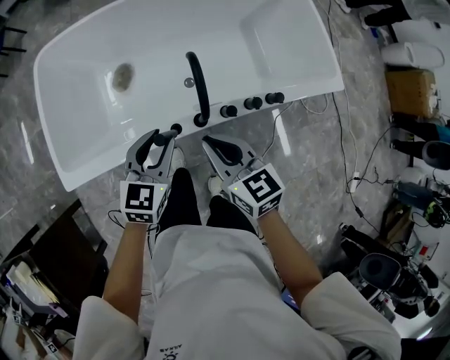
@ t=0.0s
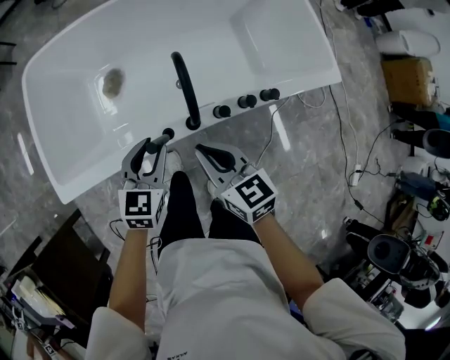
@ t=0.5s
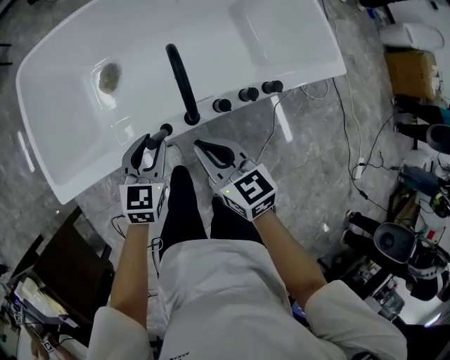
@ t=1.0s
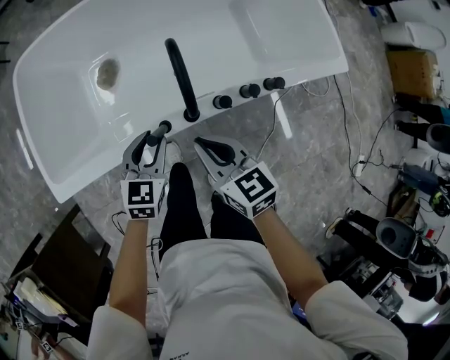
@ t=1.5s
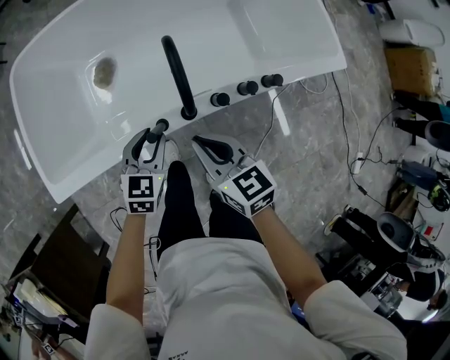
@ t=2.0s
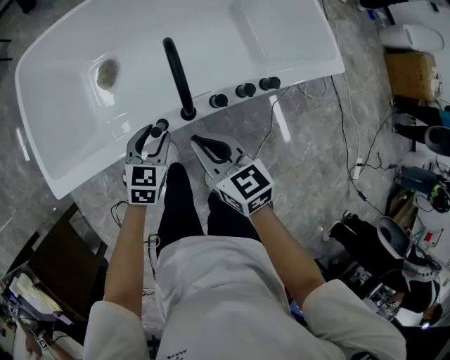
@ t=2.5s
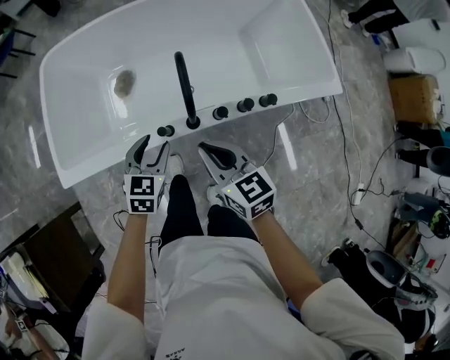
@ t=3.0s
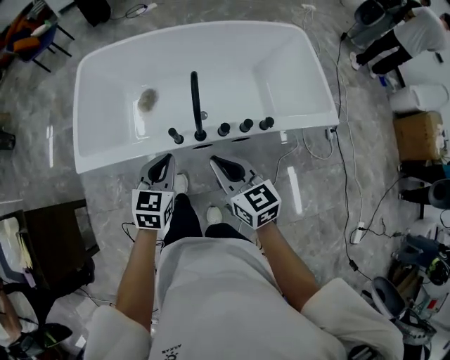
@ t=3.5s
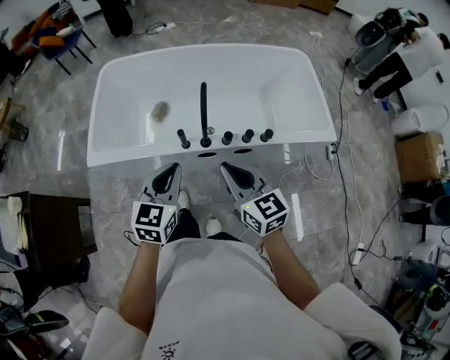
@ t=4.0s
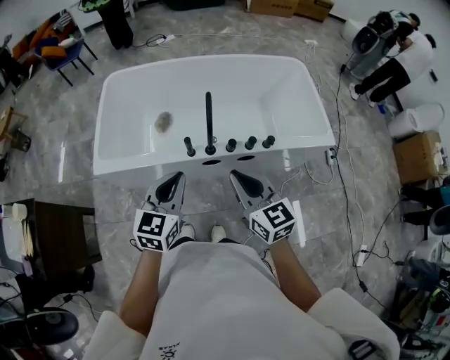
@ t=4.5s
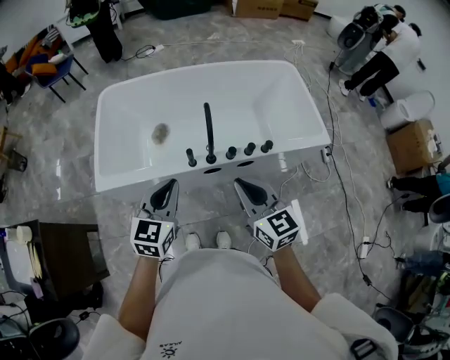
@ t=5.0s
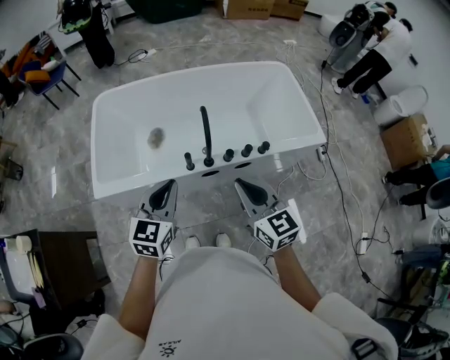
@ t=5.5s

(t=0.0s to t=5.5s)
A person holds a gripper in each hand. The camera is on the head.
t=0.0s - t=2.0s: The left gripper moves downward, about 10 cm; the right gripper shifts some 5 cm downward.
t=2.0s - t=3.5s: Both grippers travel together upward and backward, some 15 cm. The left gripper closes up.
t=3.5s - t=5.5s: The right gripper heads upward and backward, covering some 15 cm, while the left gripper heads upward, backward and to the left, covering approximately 15 cm.

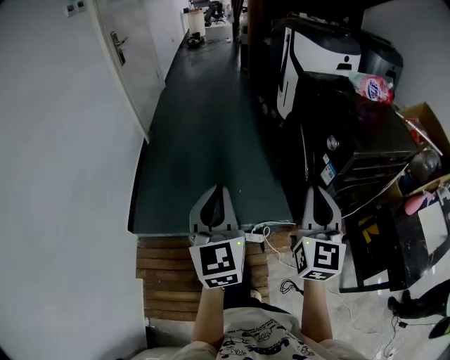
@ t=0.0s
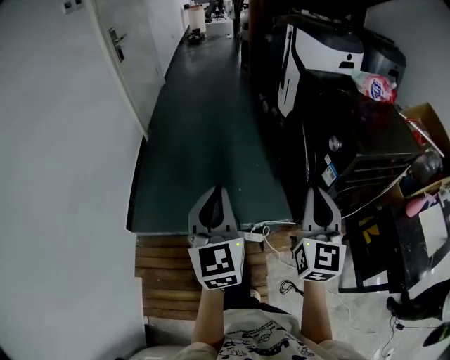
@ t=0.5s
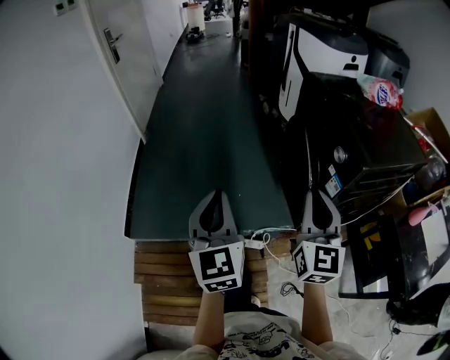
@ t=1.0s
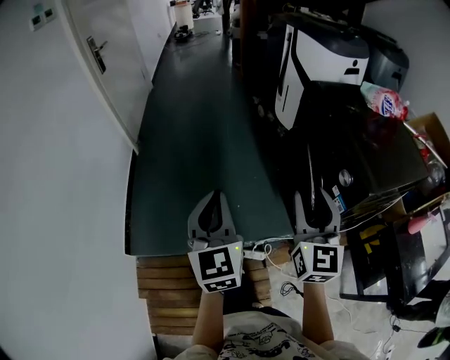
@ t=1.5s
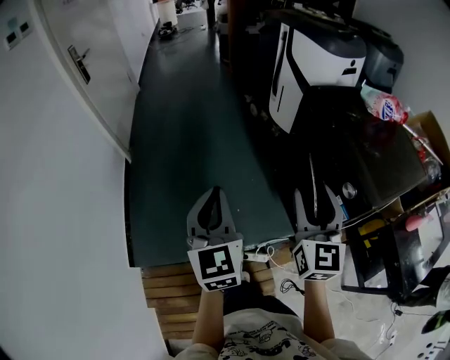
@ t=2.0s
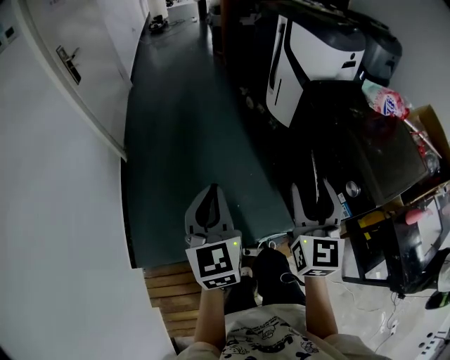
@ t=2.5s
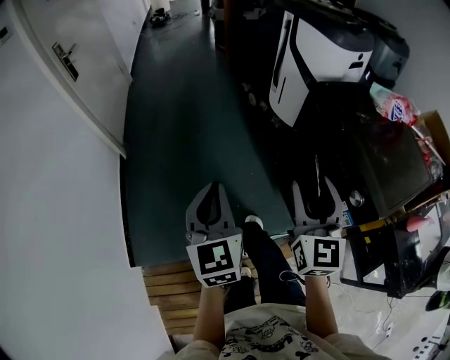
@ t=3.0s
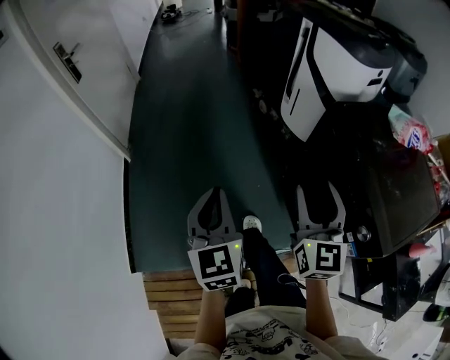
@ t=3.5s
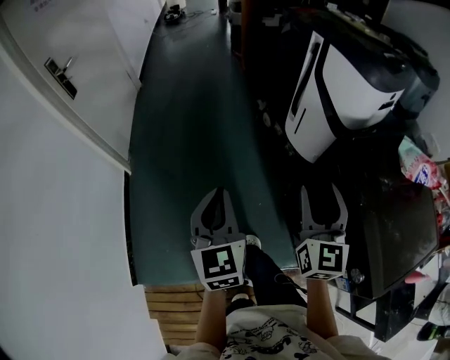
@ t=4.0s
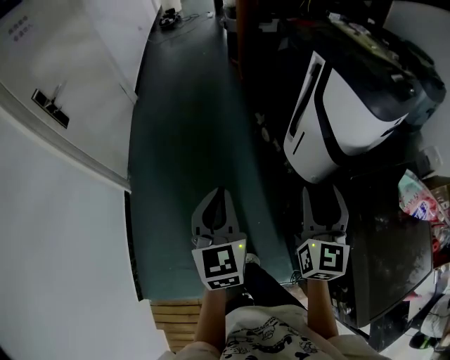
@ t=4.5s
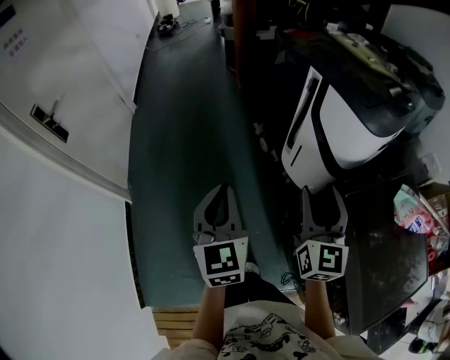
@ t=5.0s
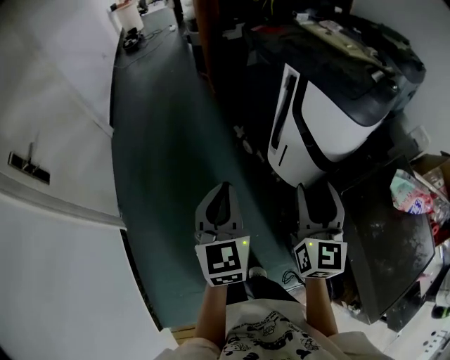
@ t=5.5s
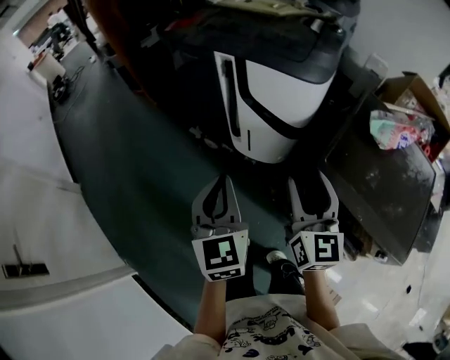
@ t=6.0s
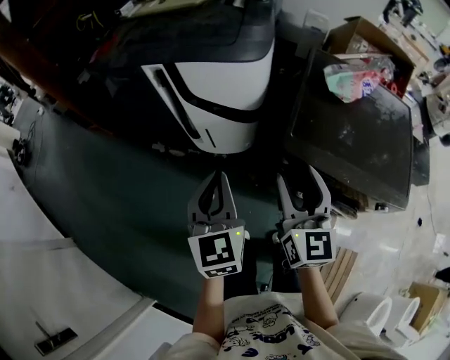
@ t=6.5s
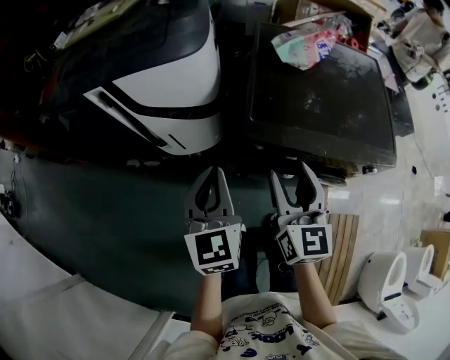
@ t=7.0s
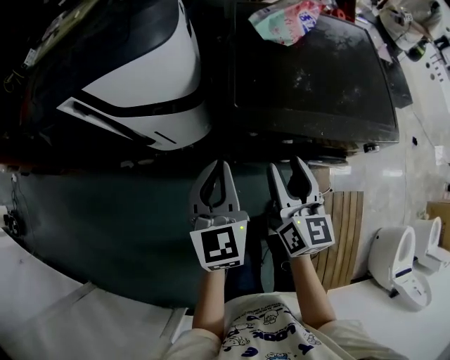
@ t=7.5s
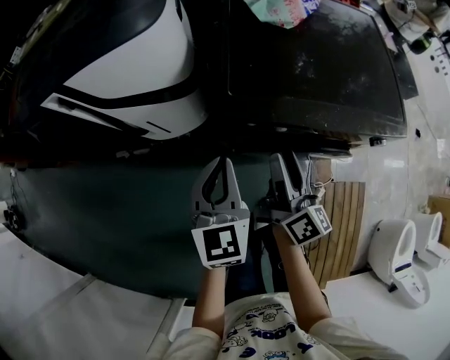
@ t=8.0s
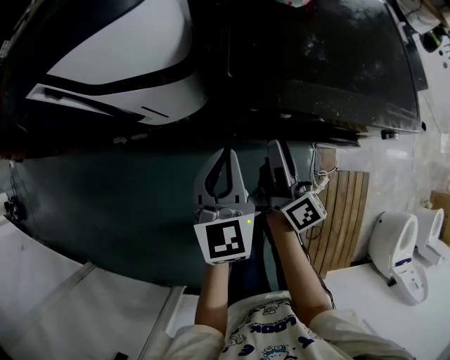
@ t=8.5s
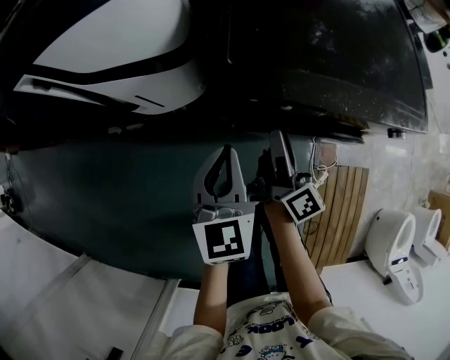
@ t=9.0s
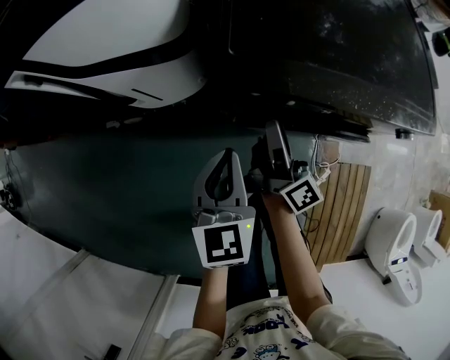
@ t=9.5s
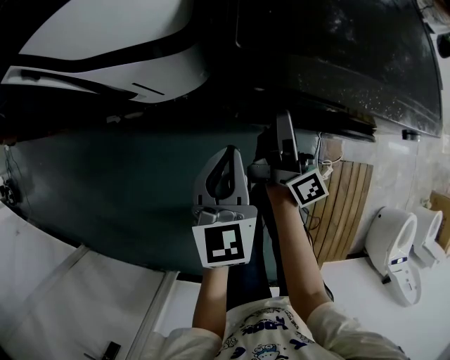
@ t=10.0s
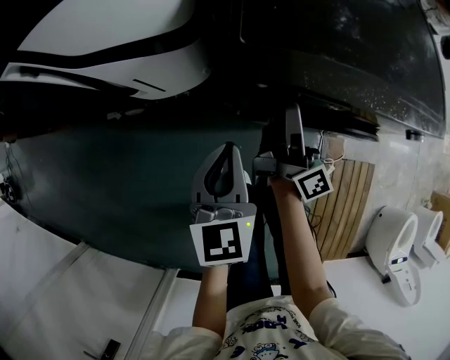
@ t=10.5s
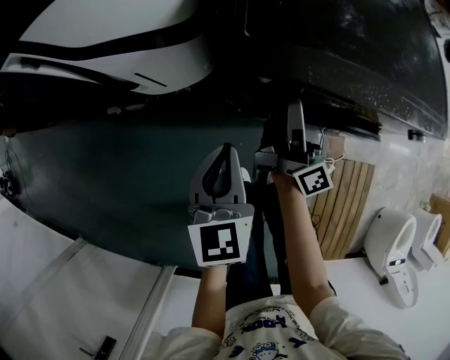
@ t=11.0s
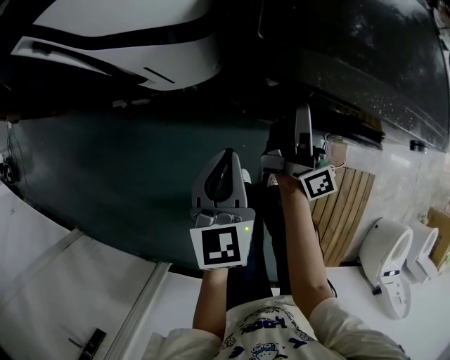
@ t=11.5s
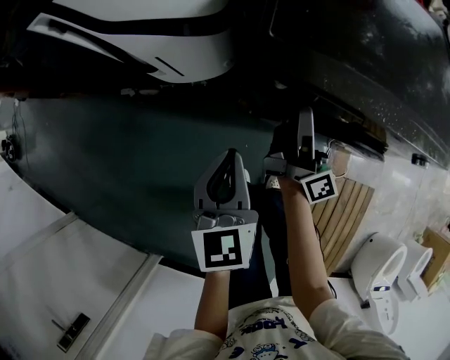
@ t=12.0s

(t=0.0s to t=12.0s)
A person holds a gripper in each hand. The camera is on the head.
t=0.0s - t=2.0s: Both grippers travel together forward, roughly 30 cm. The right gripper opens its fingers.
t=2.0s - t=4.0s: Both grippers travel together forward, roughly 35 cm.
t=4.0s - t=6.0s: The right gripper moves roughly 30 cm, and changes its angle by some 30 degrees; the left gripper ends up some 40 cm from where it was, and turns by about 40 degrees.
t=6.0s - t=8.0s: The left gripper shifts by about 25 cm, and changes its angle by about 40 degrees. Meanwhile the right gripper ends up about 25 cm from where it was, and turns by roughly 60 degrees.
t=8.0s - t=10.0s: The left gripper shifts about 10 cm downward; the right gripper heads downward and forward, covering some 15 cm, and turns by about 20 degrees.
t=10.0s - t=12.0s: The grippers stay close to where they were, moving slightly.

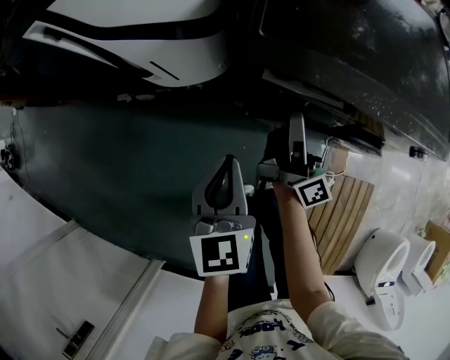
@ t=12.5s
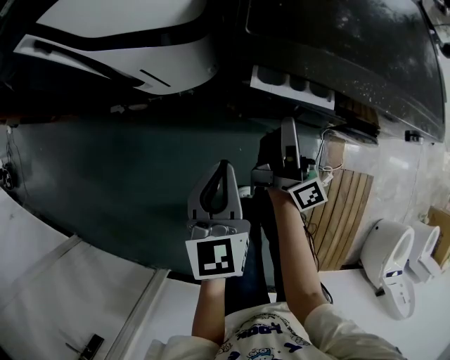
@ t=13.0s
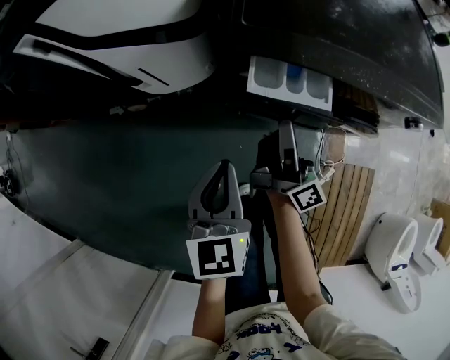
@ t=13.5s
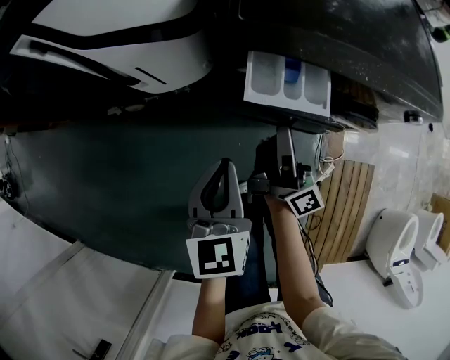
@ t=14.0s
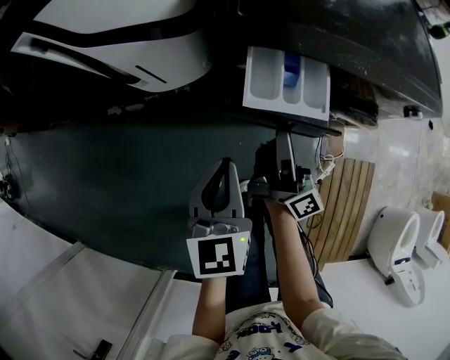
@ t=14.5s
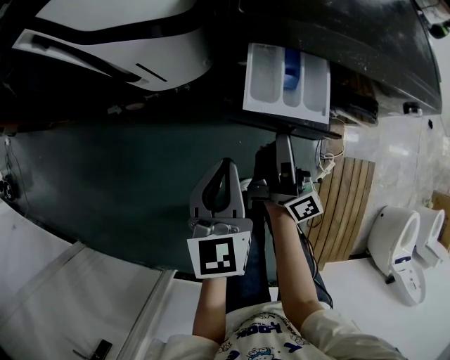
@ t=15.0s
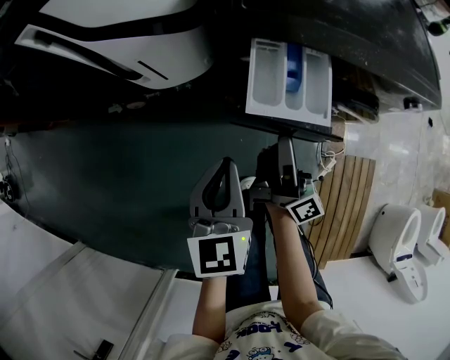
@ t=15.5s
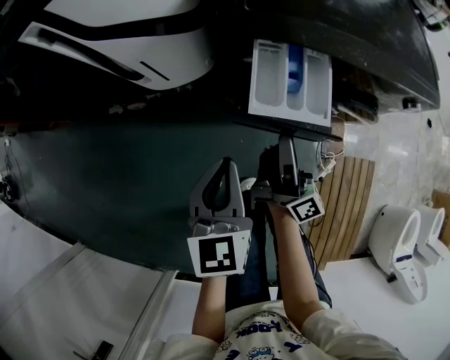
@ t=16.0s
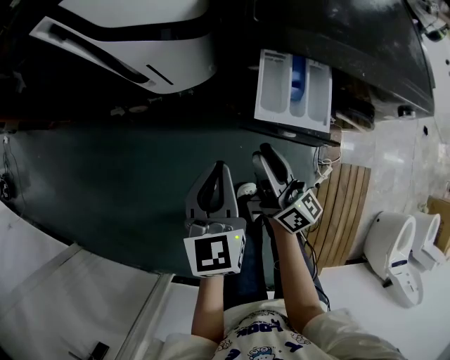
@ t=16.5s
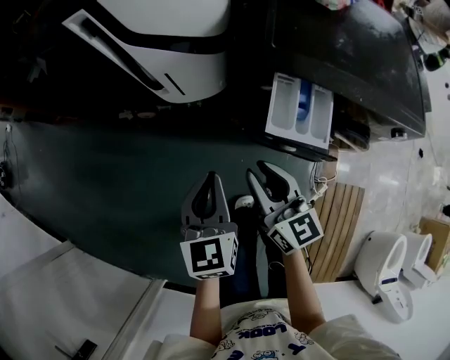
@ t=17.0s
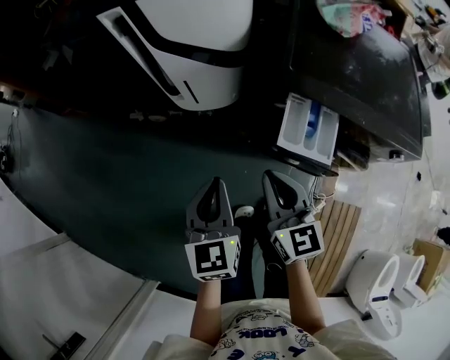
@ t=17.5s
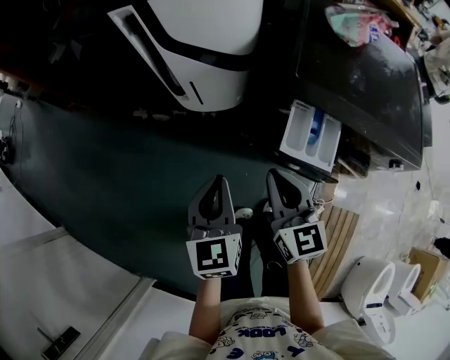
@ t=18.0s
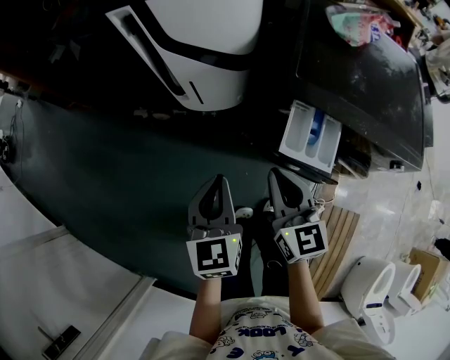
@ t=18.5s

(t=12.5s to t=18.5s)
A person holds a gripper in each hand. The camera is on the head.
t=12.5s - t=14.5s: The right gripper is displaced backward by some 10 cm.
t=14.5s - t=16.5s: The left gripper changes place by about 5 cm. Meanwhile the right gripper is displaced to the left and backward by some 10 cm, and changes its angle by some 30 degrees.
t=16.5s - t=18.5s: The right gripper is displaced upward by roughly 10 cm, twists about 40 degrees counterclockwise, seen from behind, and closes its fingers. The left gripper shifts approximately 10 cm upward and to the left.

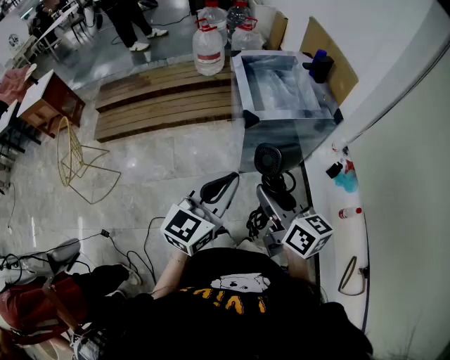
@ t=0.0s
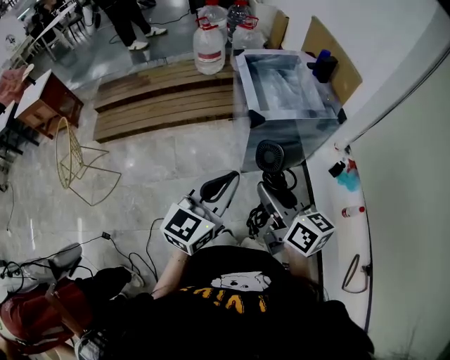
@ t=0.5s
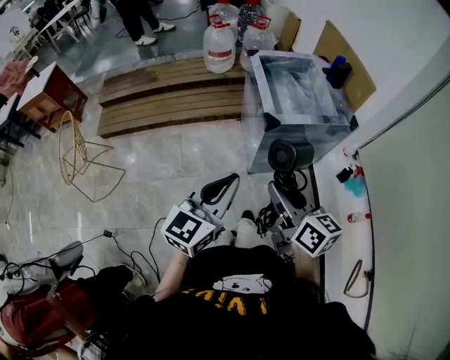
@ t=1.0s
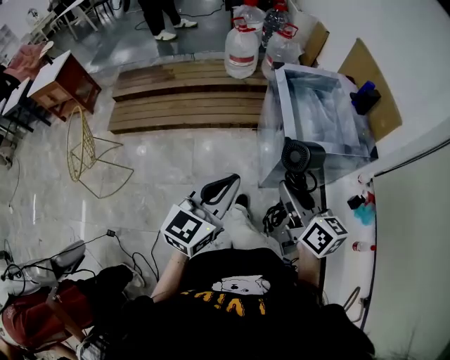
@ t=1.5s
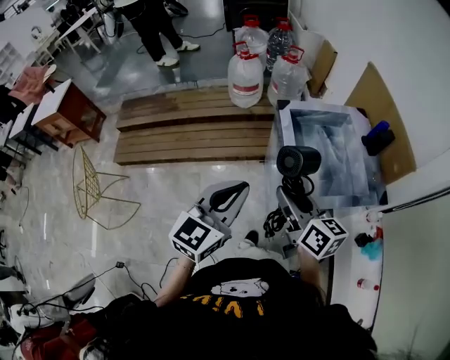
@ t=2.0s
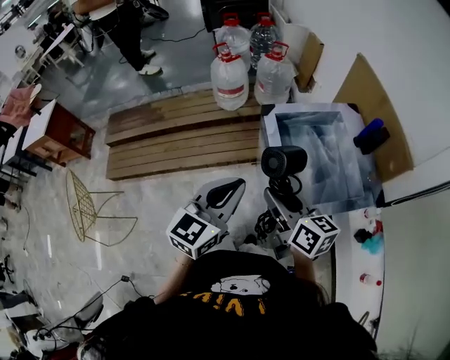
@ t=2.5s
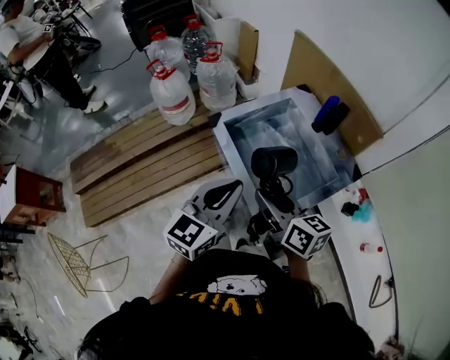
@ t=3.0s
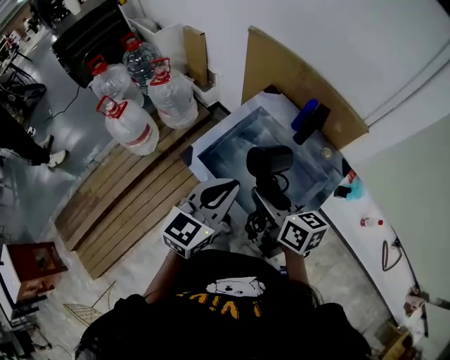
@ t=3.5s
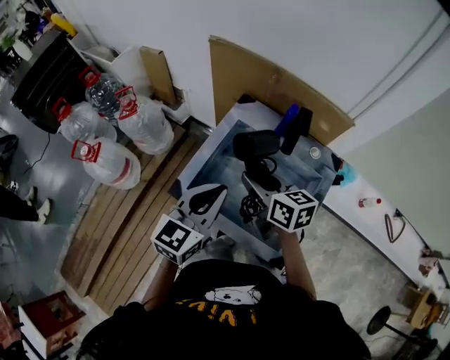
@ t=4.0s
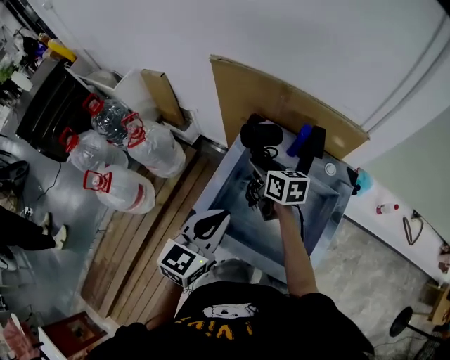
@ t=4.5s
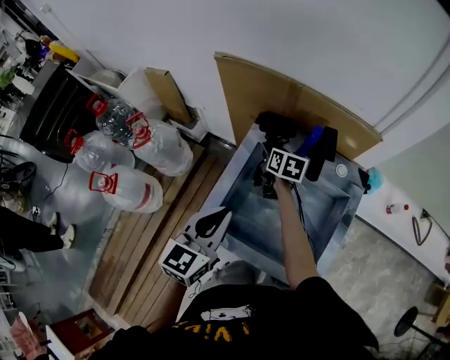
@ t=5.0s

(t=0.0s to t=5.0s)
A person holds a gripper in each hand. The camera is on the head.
t=0.0s - t=2.5s: Both grippers travel together forward, some 40 cm.
t=2.5s - t=5.0s: The left gripper shifts by roughly 40 cm, and changes its angle by roughly 50 degrees. Meanwhile the right gripper shifts by roughly 60 cm, and turns by roughly 70 degrees.
